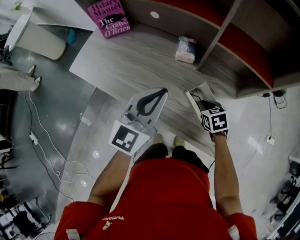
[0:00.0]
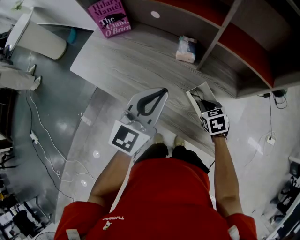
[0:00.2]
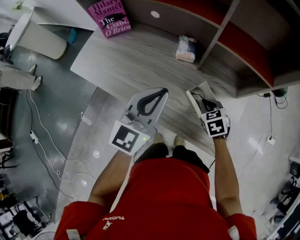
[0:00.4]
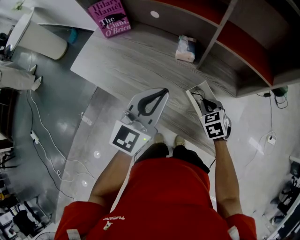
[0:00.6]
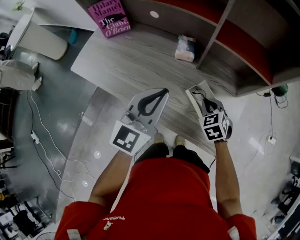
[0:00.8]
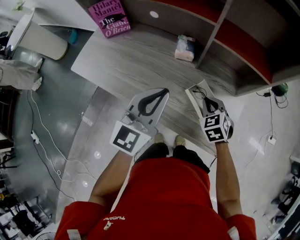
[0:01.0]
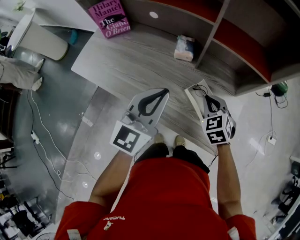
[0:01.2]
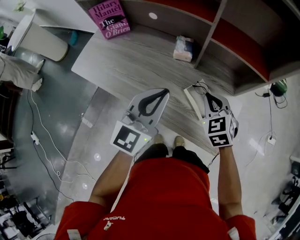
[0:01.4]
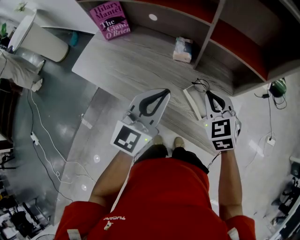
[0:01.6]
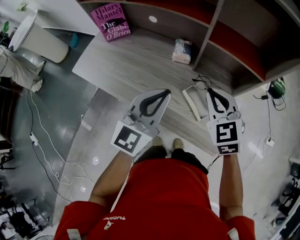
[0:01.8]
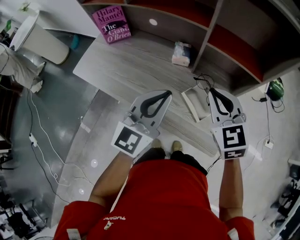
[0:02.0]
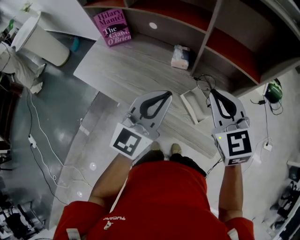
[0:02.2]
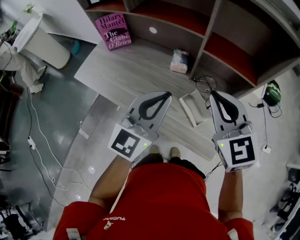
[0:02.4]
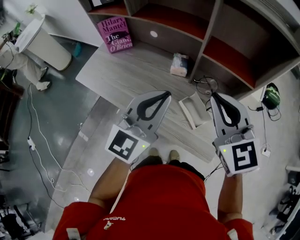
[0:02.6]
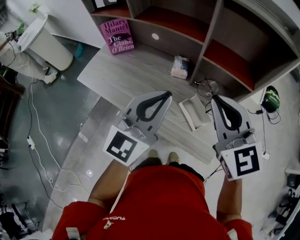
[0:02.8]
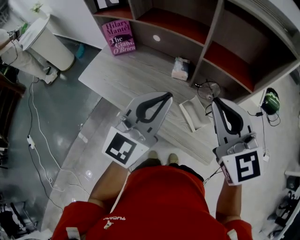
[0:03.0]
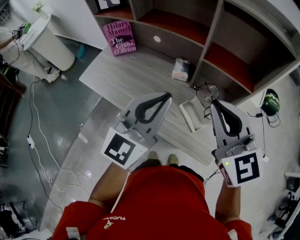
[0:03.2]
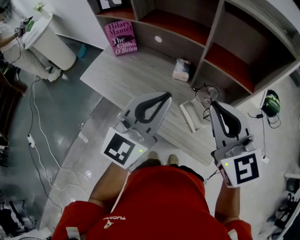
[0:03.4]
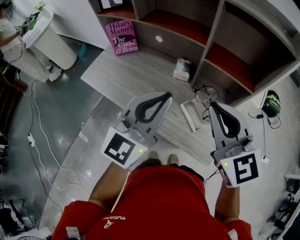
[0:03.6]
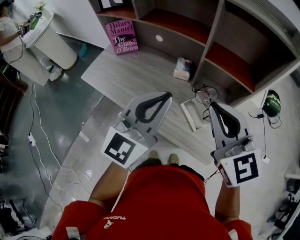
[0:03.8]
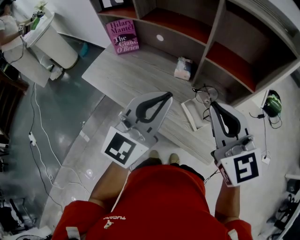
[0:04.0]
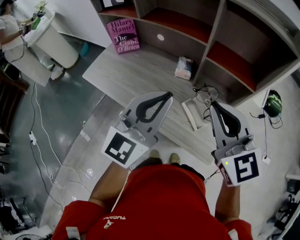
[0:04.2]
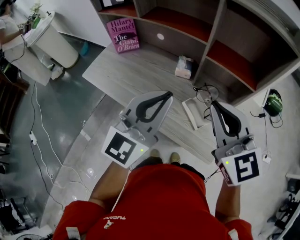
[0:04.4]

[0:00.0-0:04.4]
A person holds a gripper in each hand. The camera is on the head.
0:00.0 to 0:01.4: The right gripper travels upward by some 15 cm, and rotates some 30 degrees.
0:01.4 to 0:03.0: The left gripper travels upward by some 10 cm, while the right gripper moves upward, approximately 25 cm, and tilts its fingers approximately 30 degrees upward.
0:03.0 to 0:04.4: The grippers stay close to where they were, moving slightly.

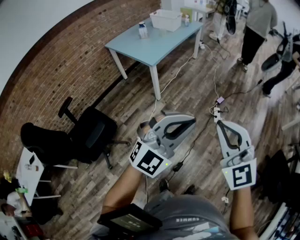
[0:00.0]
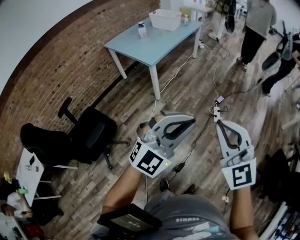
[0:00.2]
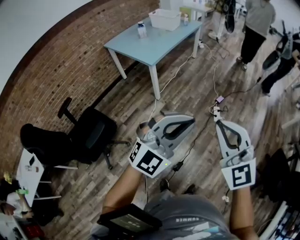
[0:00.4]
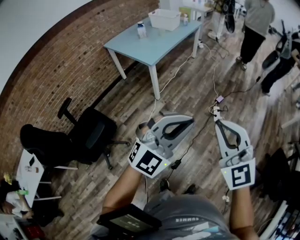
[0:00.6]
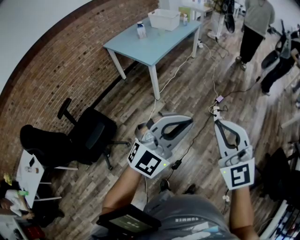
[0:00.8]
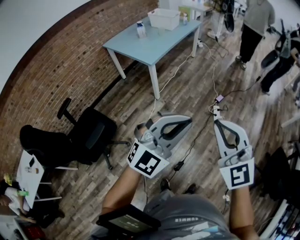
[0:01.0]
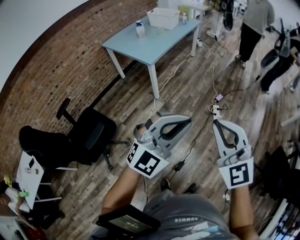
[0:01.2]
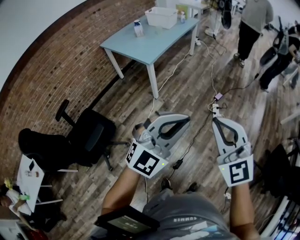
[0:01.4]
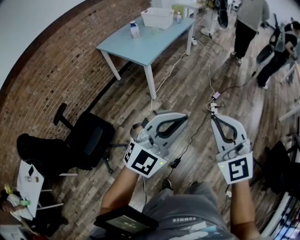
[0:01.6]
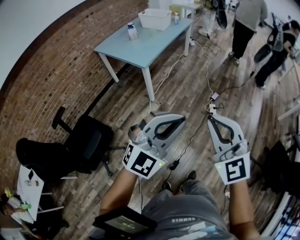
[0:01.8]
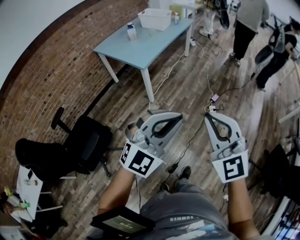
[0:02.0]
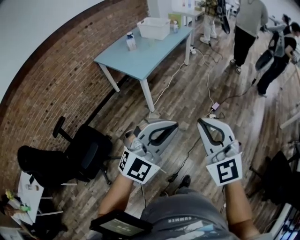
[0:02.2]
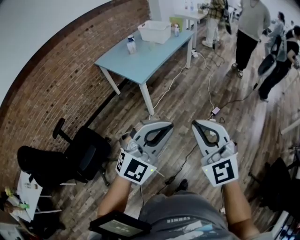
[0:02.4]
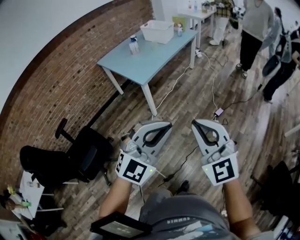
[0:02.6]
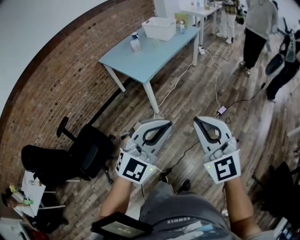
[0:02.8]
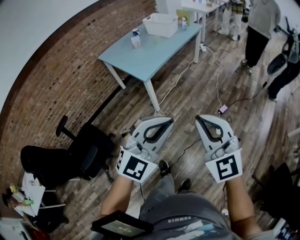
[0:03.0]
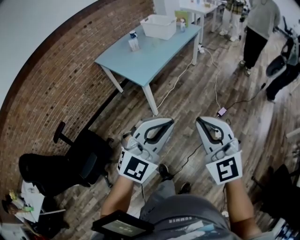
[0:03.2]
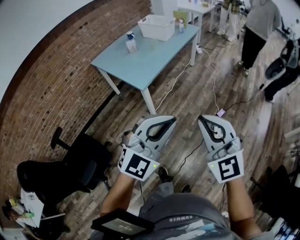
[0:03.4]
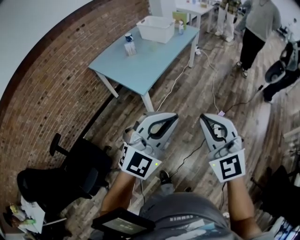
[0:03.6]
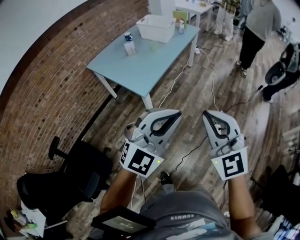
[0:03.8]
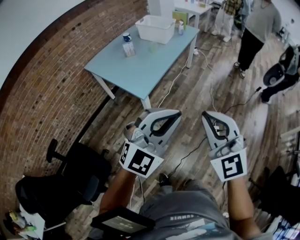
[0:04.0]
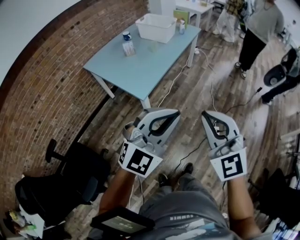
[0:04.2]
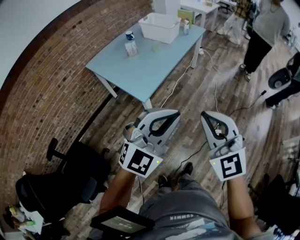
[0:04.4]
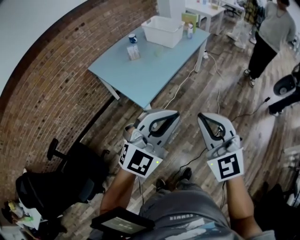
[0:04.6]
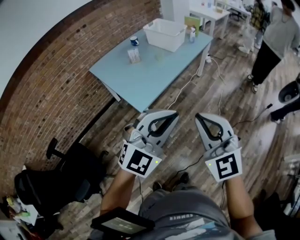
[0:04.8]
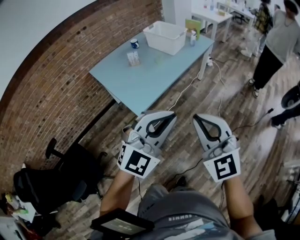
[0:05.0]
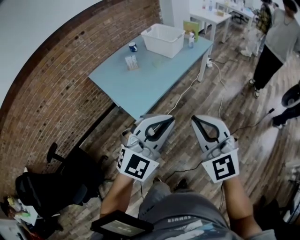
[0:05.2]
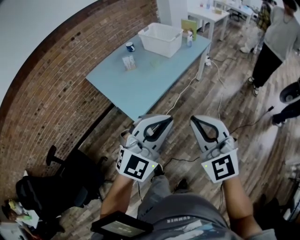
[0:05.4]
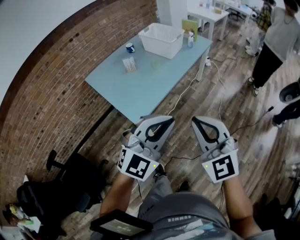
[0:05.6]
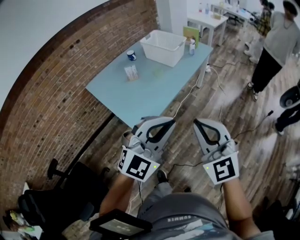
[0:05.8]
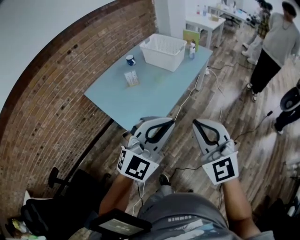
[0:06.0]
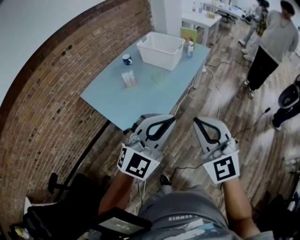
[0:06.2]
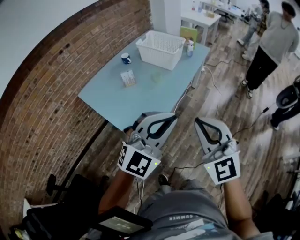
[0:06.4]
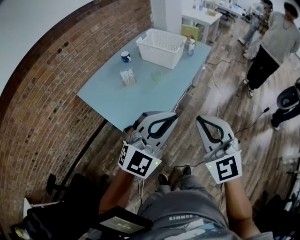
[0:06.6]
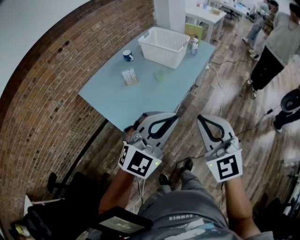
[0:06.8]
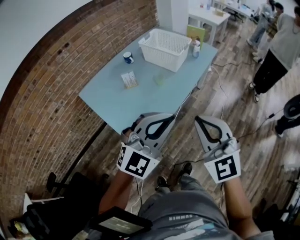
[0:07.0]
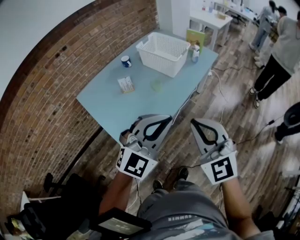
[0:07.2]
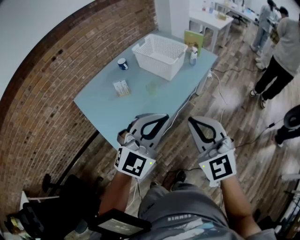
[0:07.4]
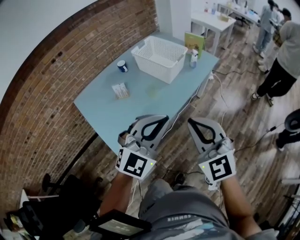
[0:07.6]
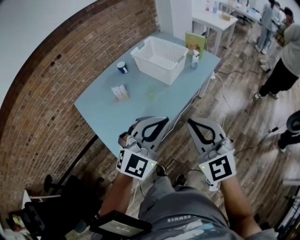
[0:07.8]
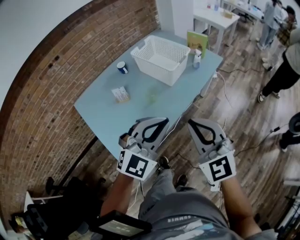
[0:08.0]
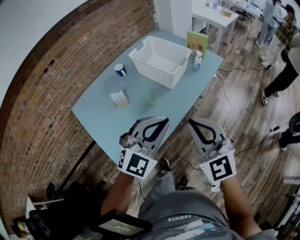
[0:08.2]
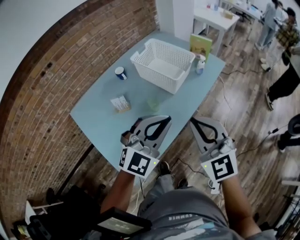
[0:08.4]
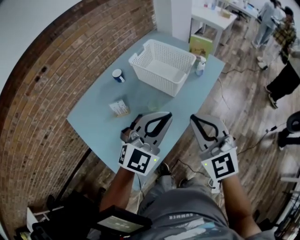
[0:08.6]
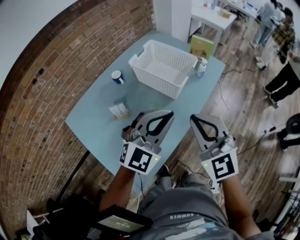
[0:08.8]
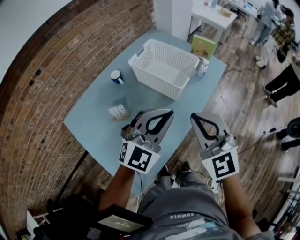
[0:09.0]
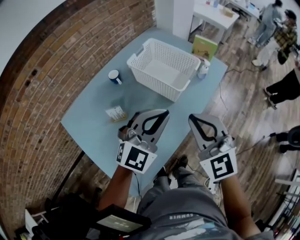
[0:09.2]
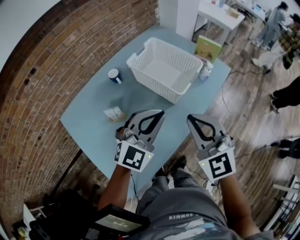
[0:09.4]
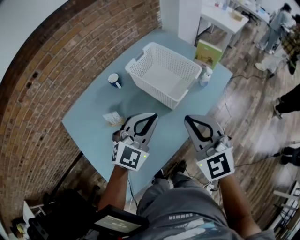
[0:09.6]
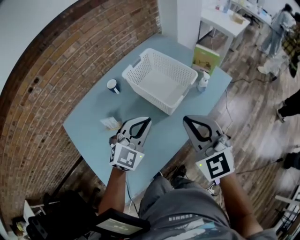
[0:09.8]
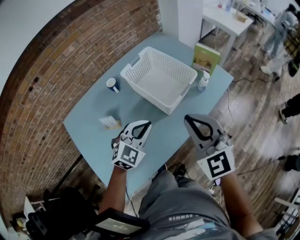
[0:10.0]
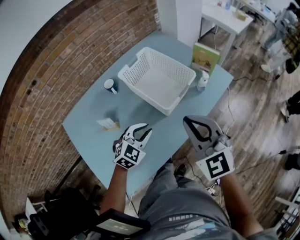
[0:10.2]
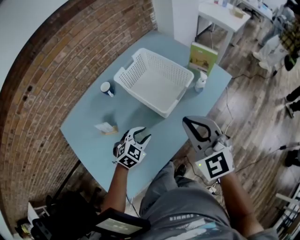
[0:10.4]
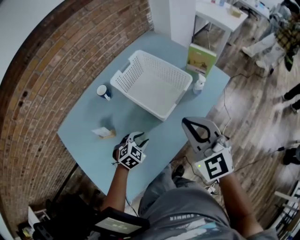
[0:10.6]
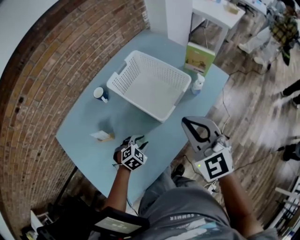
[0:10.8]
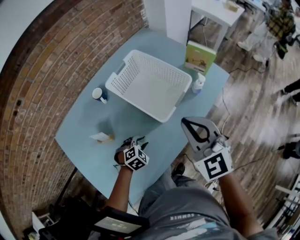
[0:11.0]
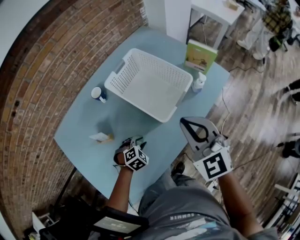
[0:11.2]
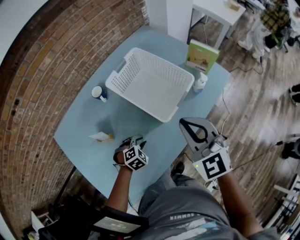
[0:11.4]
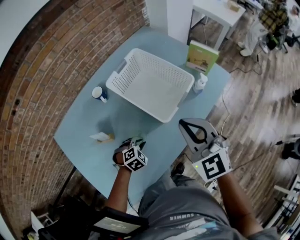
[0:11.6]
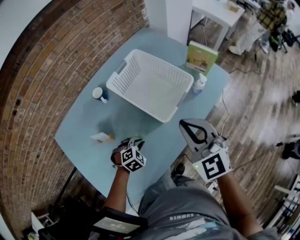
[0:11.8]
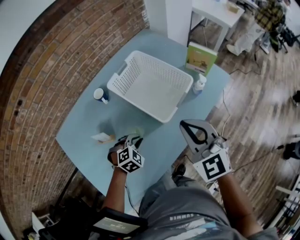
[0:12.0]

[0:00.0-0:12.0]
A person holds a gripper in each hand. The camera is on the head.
0:00.0 to 0:01.6: The right gripper changes place by about 5 cm; the left gripper changes place by about 5 cm.
0:01.6 to 0:03.0: Both grippers move forward, about 15 cm.
0:03.0 to 0:04.4: The grippers both shift forward by about 25 cm.
0:04.4 to 0:06.0: Both grippers move forward, approximately 25 cm.
0:06.0 to 0:07.6: The grippers both shift forward by approximately 20 cm.
0:07.6 to 0:09.0: Both grippers travel together forward, roughly 20 cm.
0:09.0 to 0:10.4: The left gripper shifts approximately 25 cm downward and forward, tilts its fingers roughly 40 degrees downward, and opens up, while the right gripper shifts approximately 15 cm forward and to the right.
0:10.4 to 0:12.0: The right gripper moves about 5 cm.

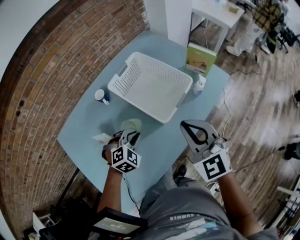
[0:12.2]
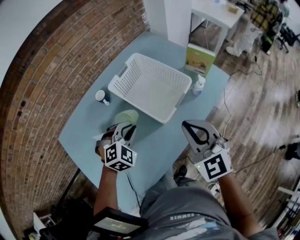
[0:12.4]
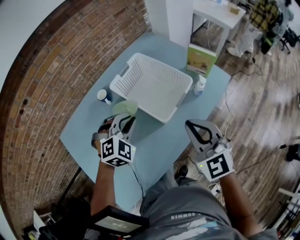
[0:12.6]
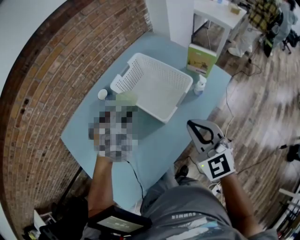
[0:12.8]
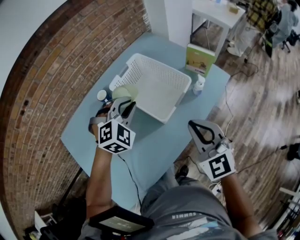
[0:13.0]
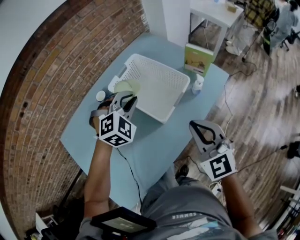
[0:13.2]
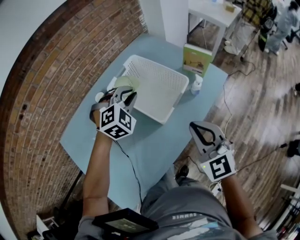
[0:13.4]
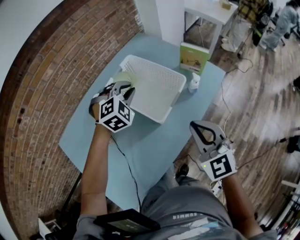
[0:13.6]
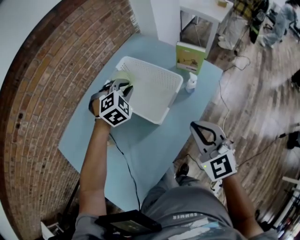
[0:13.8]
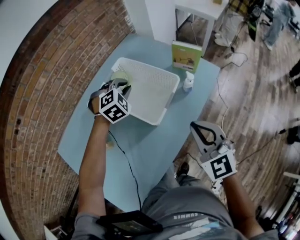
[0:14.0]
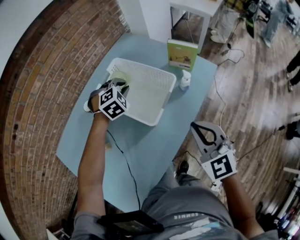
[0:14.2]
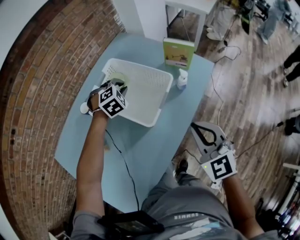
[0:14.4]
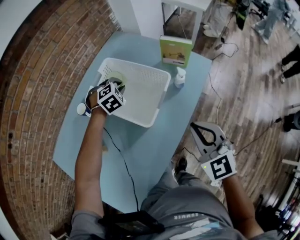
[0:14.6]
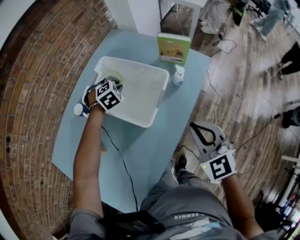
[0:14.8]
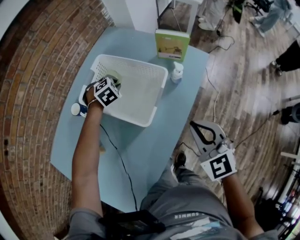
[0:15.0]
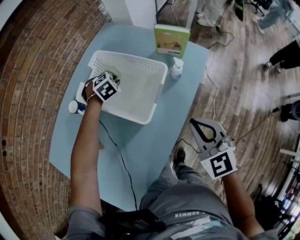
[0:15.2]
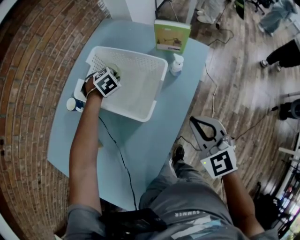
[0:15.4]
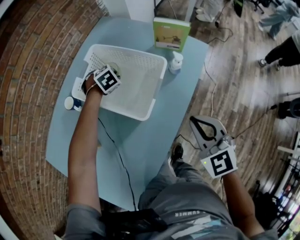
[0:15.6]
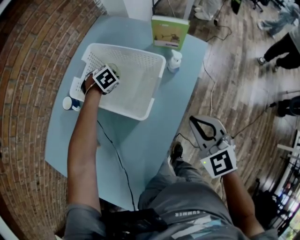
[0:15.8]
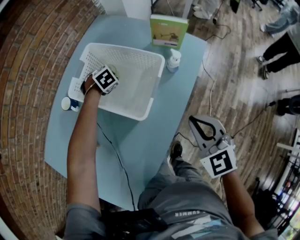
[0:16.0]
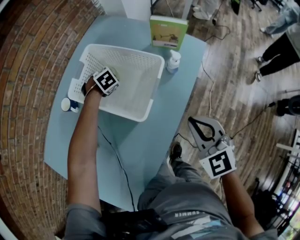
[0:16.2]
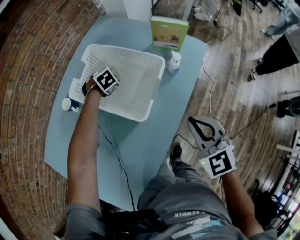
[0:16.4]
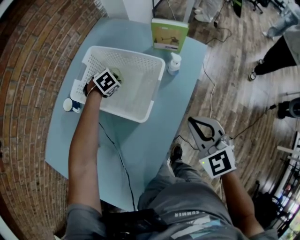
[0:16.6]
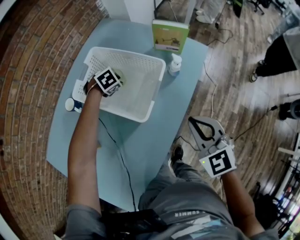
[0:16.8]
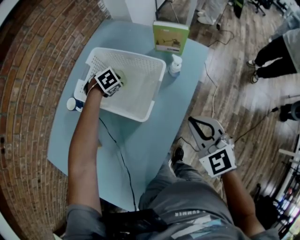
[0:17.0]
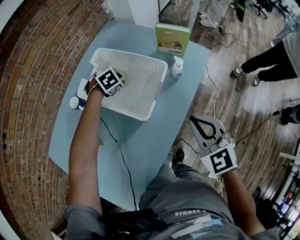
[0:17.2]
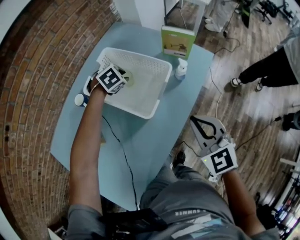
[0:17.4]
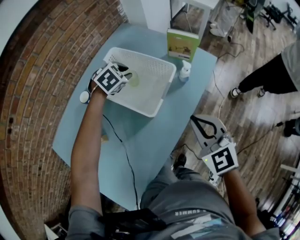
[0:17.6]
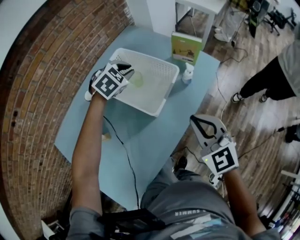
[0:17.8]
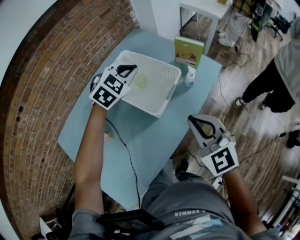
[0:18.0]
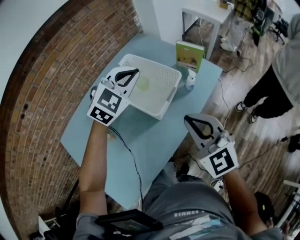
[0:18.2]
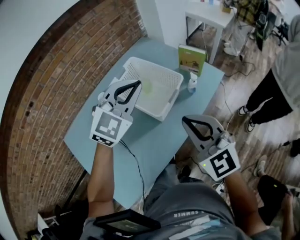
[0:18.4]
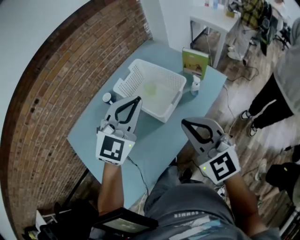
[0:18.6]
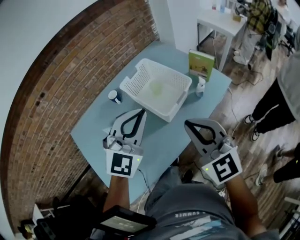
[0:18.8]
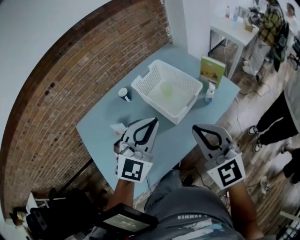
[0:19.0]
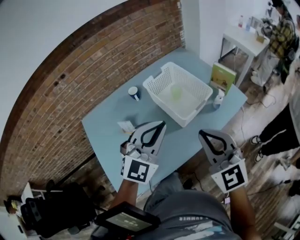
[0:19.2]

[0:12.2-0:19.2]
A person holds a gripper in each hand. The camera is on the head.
0:12.2 to 0:13.6: The left gripper heads forward and upward, covering approximately 20 cm. The right gripper ends up roughly 5 cm from where it was.
0:13.6 to 0:15.0: The right gripper is displaced downward by roughly 5 cm. The left gripper moves downward and forward, about 20 cm, and turns by some 20 degrees.
0:15.0 to 0:16.4: The left gripper heads downward, covering some 5 cm.
0:16.4 to 0:17.8: The right gripper is displaced upward by approximately 5 cm. The left gripper moves upward, approximately 20 cm, and changes its angle by roughly 30 degrees.
0:17.8 to 0:19.2: The right gripper goes approximately 15 cm upward, to the left and backward, and swivels roughly 20 degrees; the left gripper shifts roughly 35 cm backward and upward, and points its fingers some 40 degrees further upward.
